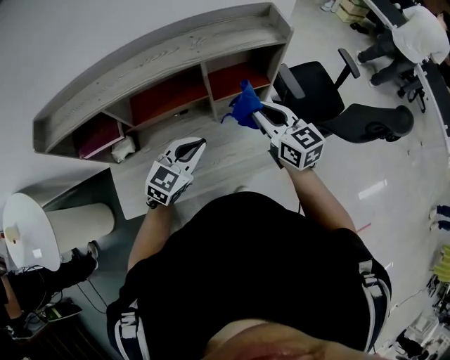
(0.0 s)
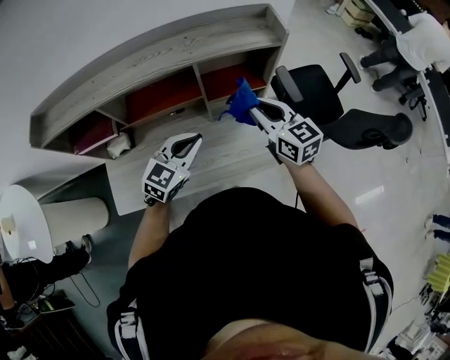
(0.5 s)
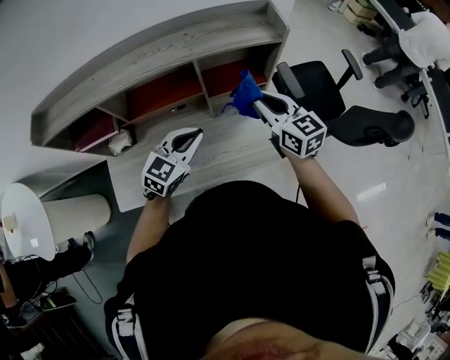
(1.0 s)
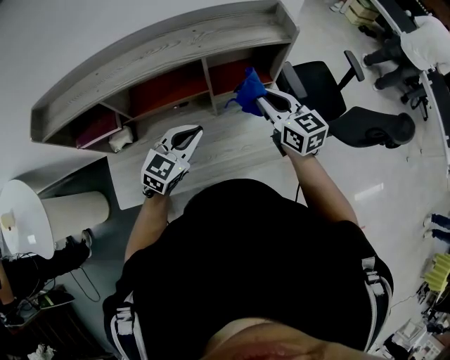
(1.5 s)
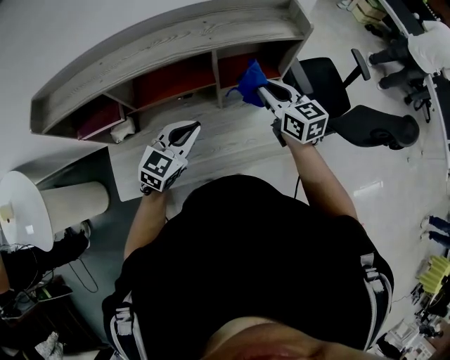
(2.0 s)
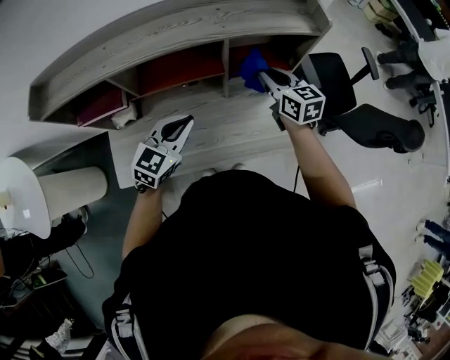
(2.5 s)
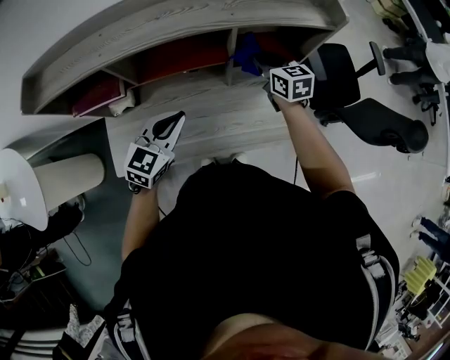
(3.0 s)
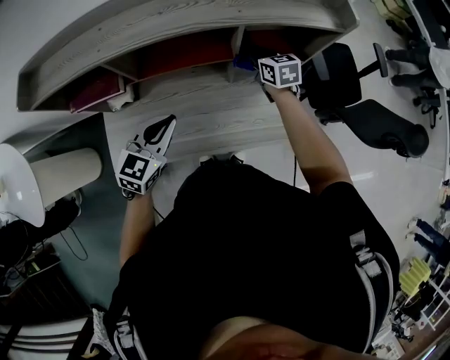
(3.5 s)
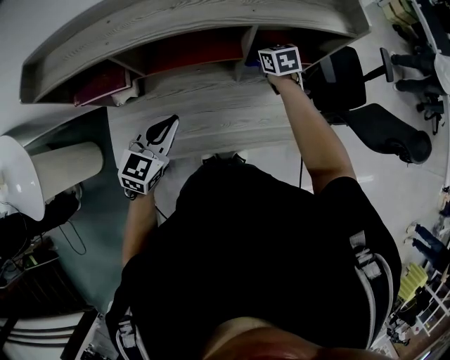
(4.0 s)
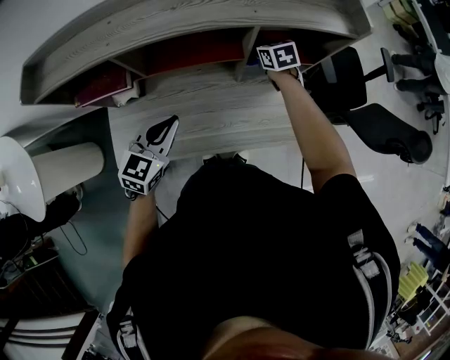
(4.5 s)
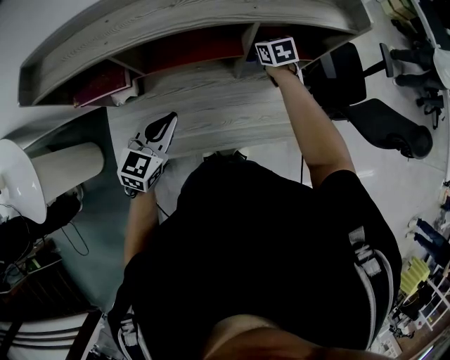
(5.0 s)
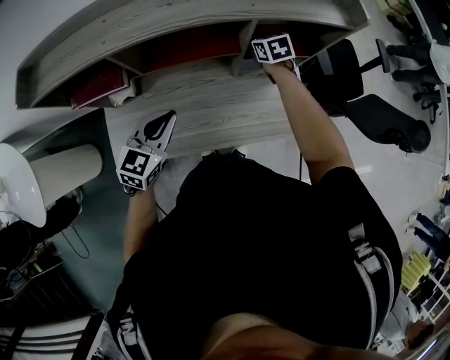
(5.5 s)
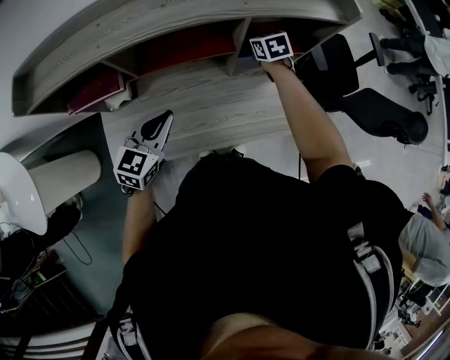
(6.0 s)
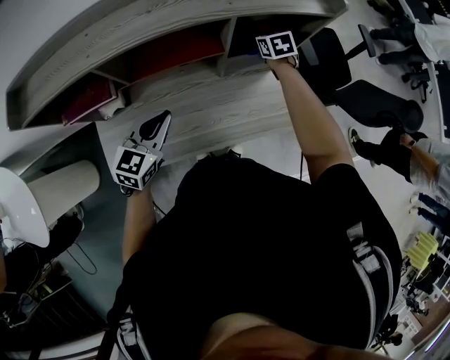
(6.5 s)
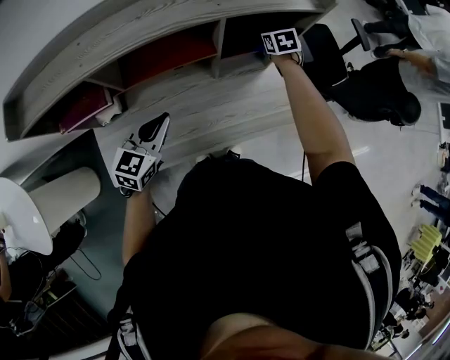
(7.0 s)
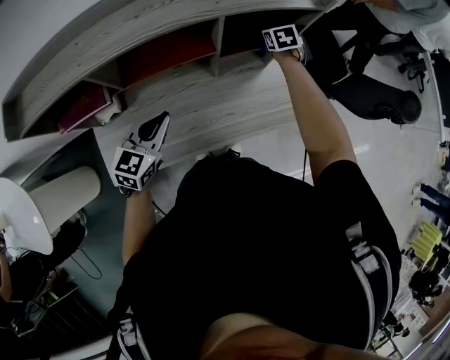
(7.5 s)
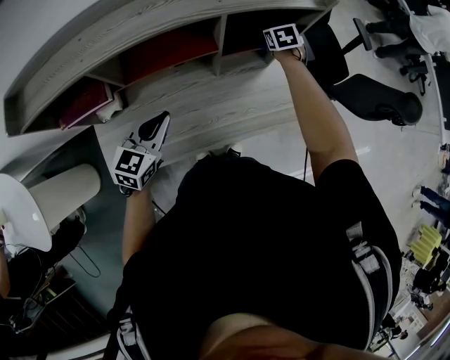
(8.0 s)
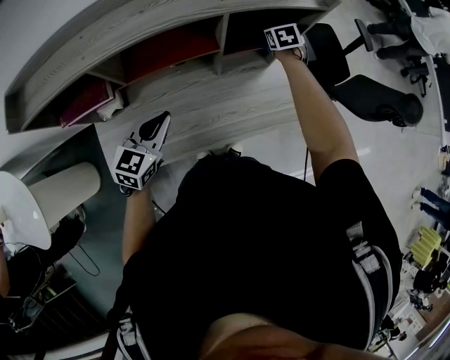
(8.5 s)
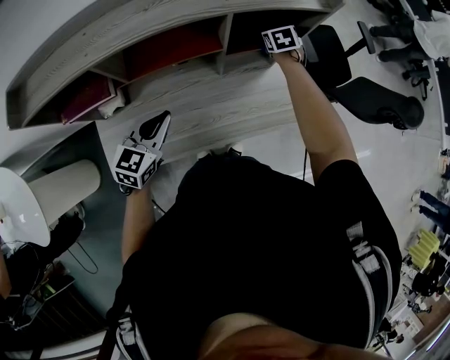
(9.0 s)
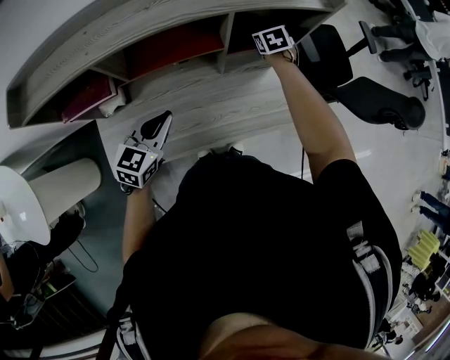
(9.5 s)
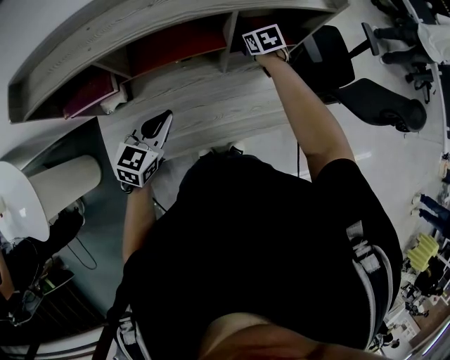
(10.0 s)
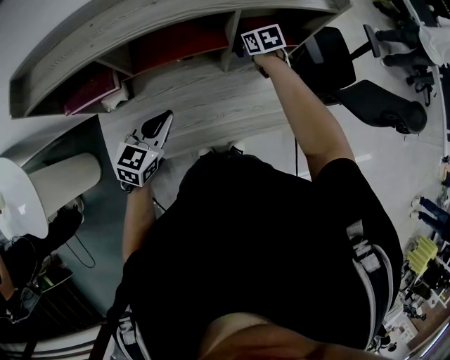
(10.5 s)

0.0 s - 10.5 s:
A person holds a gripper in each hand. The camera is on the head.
0.0 s - 2.0 s: The right gripper travels forward by about 5 cm.
2.0 s - 4.0 s: The left gripper moves to the left, some 10 cm. The right gripper is displaced downward, forward and to the left by approximately 25 cm, and swivels about 30 degrees.
4.0 s - 6.5 s: The right gripper moves to the right, roughly 10 cm.
6.5 s - 8.5 s: The right gripper moves to the right, some 5 cm.
8.5 s - 10.5 s: The right gripper moves to the left and backward, roughly 15 cm, and rotates about 20 degrees.

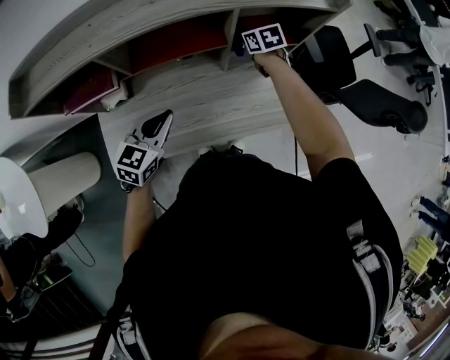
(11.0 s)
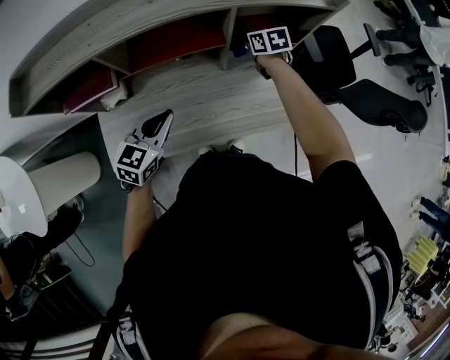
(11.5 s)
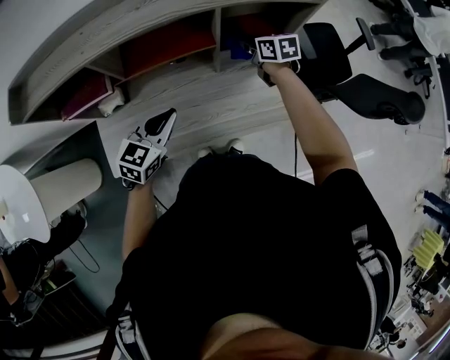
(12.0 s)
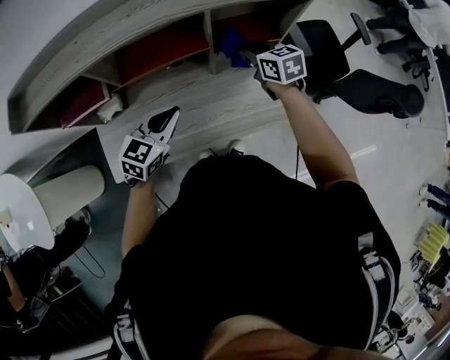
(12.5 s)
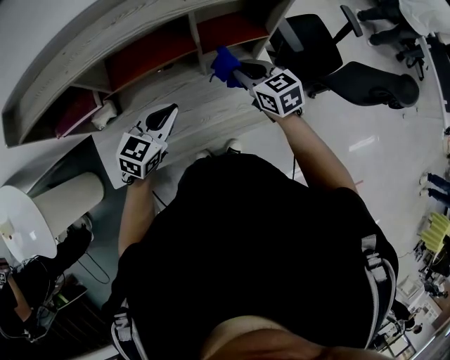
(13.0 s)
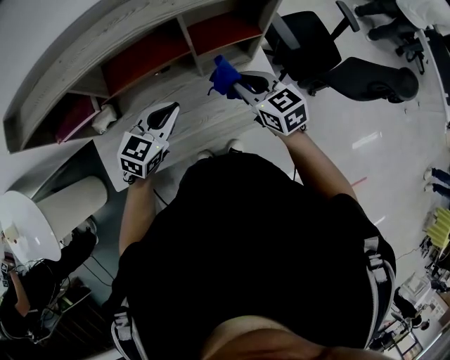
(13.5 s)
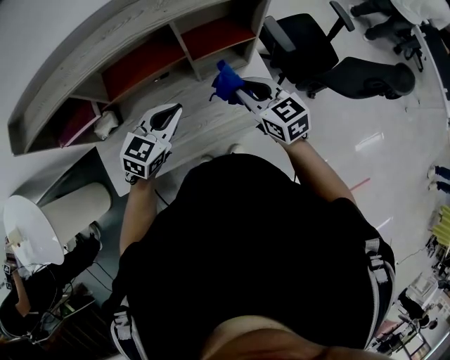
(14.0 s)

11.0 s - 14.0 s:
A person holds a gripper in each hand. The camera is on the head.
11.0 s - 12.5 s: The left gripper moves to the right, some 5 cm, while the right gripper moves upward and backward, some 15 cm.
12.5 s - 14.0 s: The left gripper shifts approximately 5 cm to the right. Meanwhile the right gripper is displaced backward by about 15 cm.

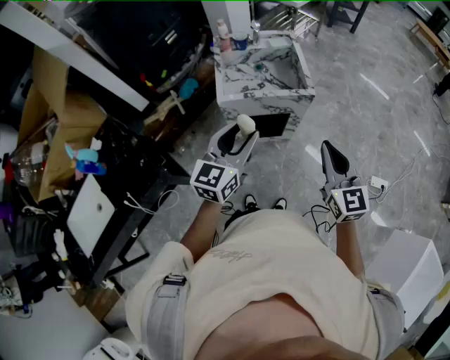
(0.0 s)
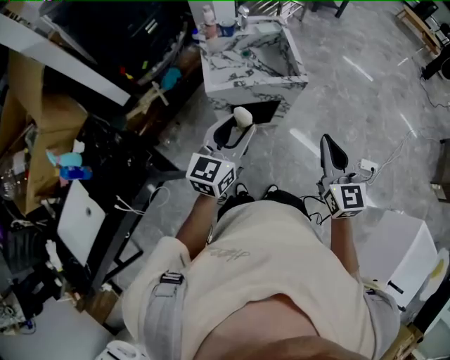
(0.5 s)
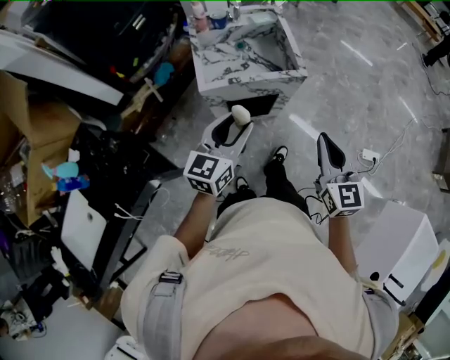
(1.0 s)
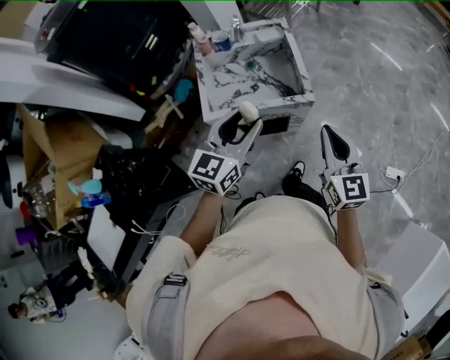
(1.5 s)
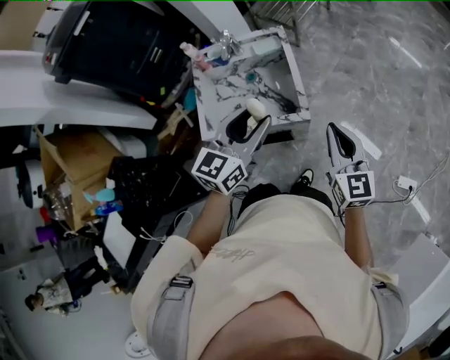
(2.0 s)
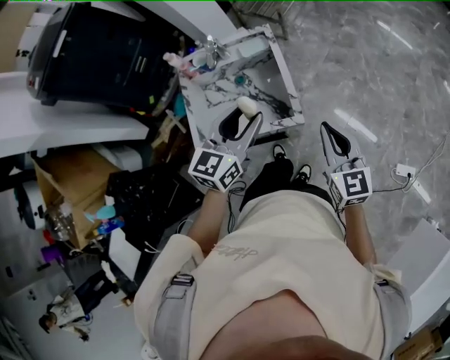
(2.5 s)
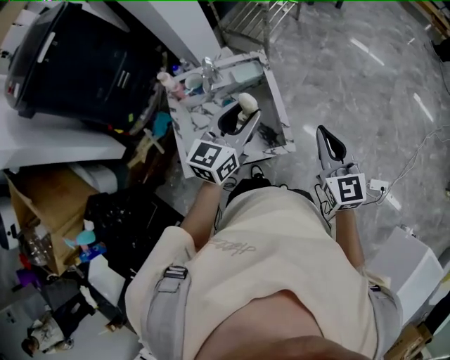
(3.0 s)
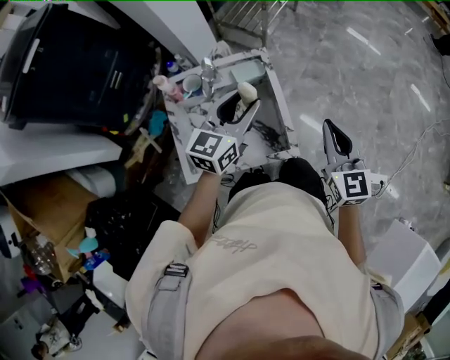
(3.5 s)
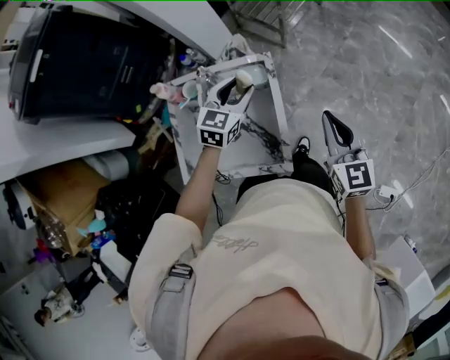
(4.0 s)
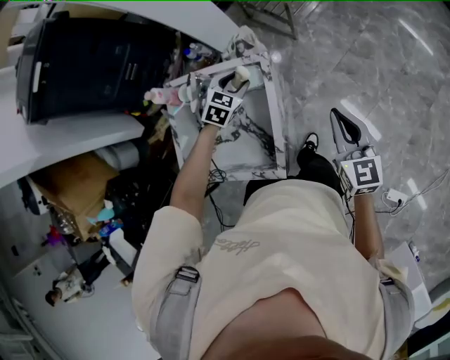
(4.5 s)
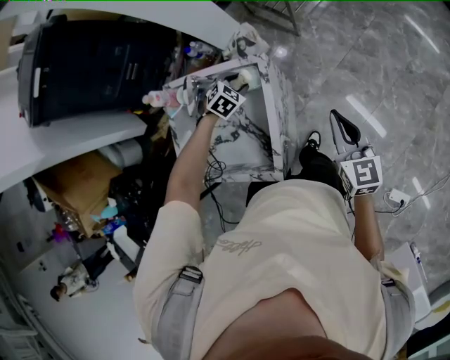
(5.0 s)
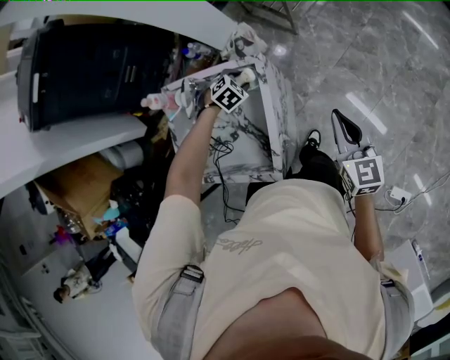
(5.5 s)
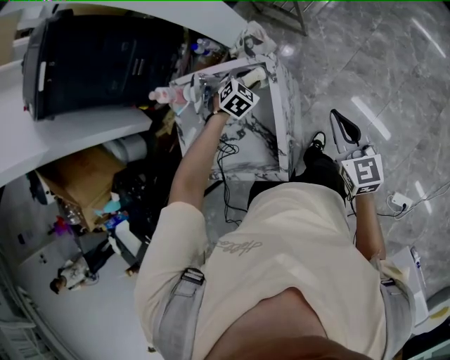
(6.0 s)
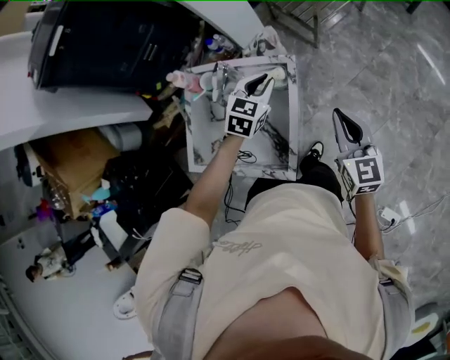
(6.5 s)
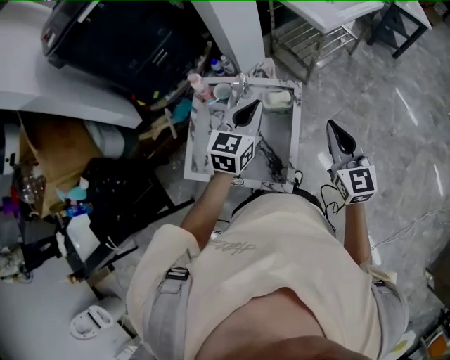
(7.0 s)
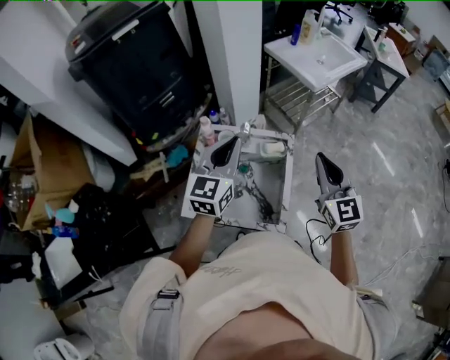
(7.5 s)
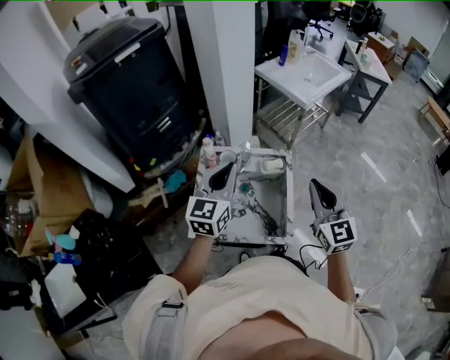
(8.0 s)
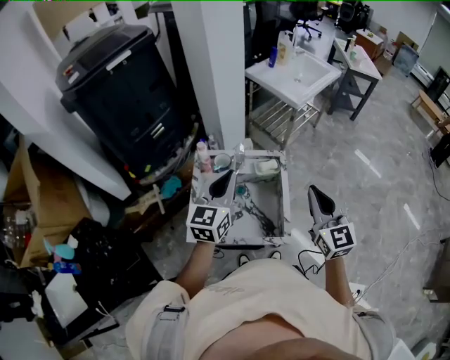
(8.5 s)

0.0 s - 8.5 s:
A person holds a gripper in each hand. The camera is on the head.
0.0 s - 2.0 s: The left gripper is displaced forward and to the right by roughly 30 cm. Meanwhile the right gripper goes about 25 cm forward.
2.0 s - 4.0 s: Both grippers travel together forward, roughly 25 cm.
4.0 s - 6.5 s: The right gripper moves forward, approximately 5 cm, and travels to the right and back again, approximately 10 cm each way. The left gripper reaches some 20 cm downward, then returns, and closes its fingers.
6.5 s - 8.5 s: The two grippers go some 25 cm upward, to the left and backward. The left gripper tilts its fingers about 30 degrees upward.

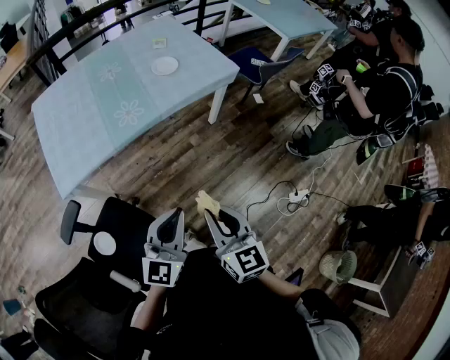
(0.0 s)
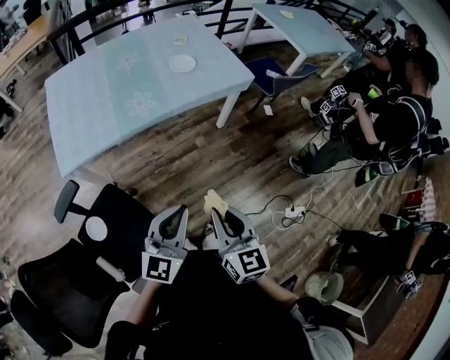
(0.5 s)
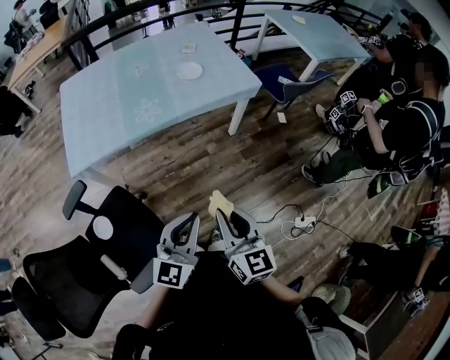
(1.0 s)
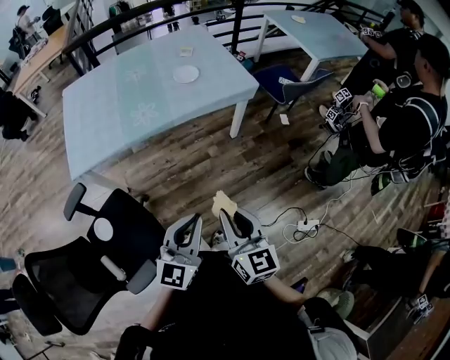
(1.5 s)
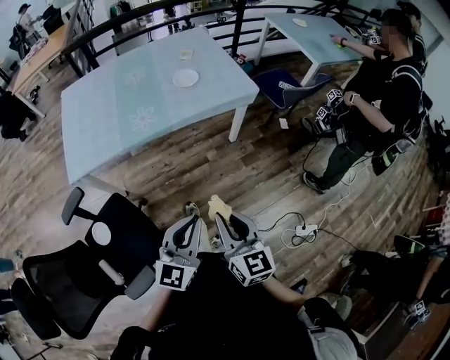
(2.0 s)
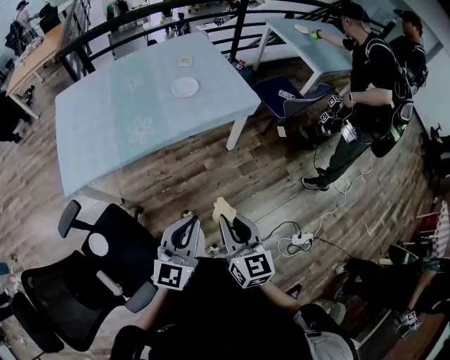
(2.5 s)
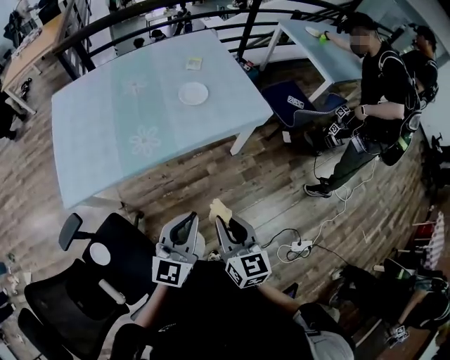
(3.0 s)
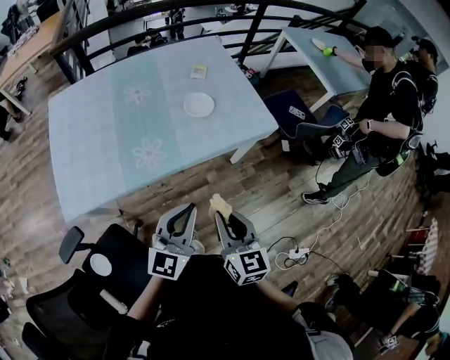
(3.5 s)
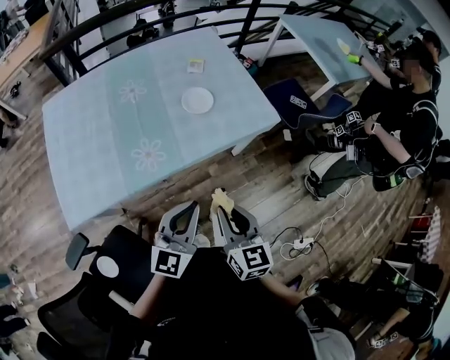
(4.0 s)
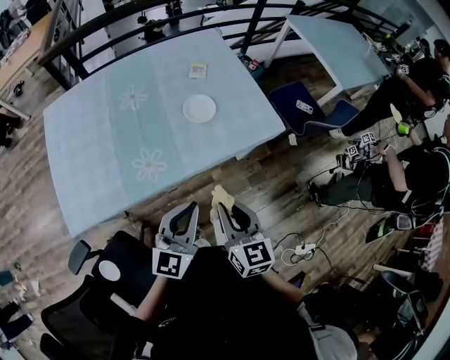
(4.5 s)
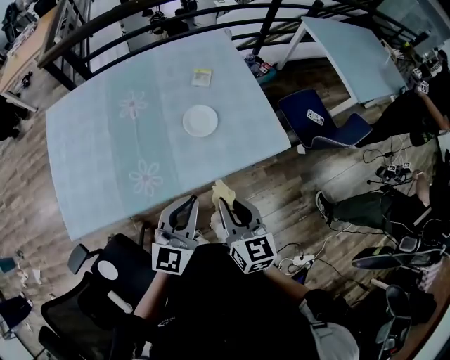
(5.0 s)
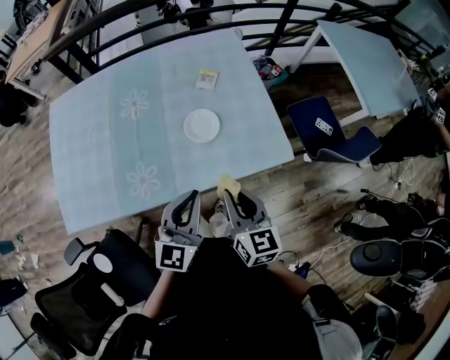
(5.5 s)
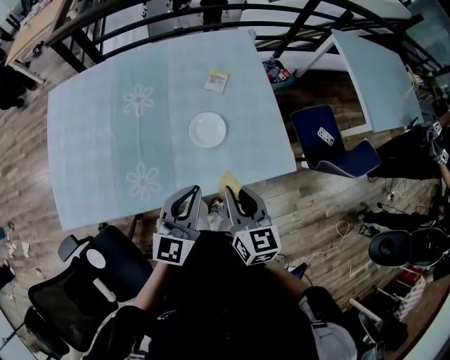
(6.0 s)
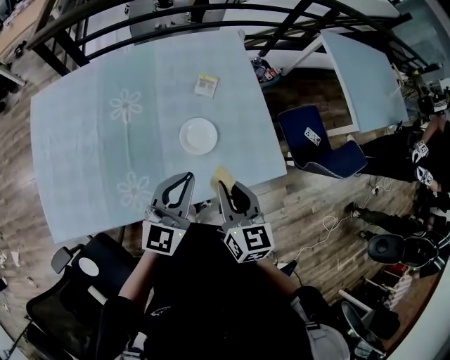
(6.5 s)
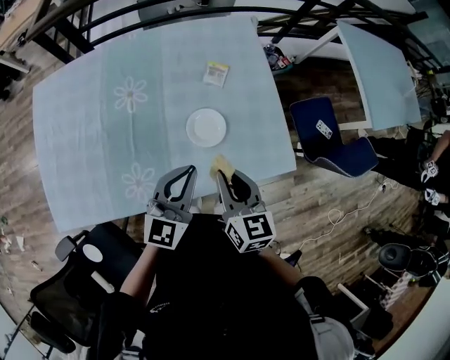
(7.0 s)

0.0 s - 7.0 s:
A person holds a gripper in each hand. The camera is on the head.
0.0 s - 2.0 s: The grippers both shift to the right by approximately 10 cm.
2.0 s - 3.5 s: The two grippers go approximately 25 cm forward and to the left.
3.5 s - 5.0 s: Both grippers travel together forward, about 20 cm.
5.0 s - 7.0 s: The grippers both shift forward by roughly 20 cm.
